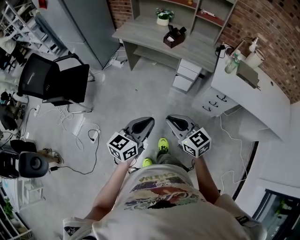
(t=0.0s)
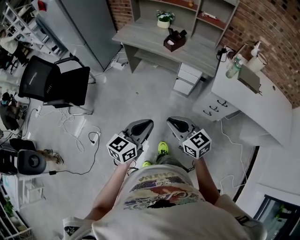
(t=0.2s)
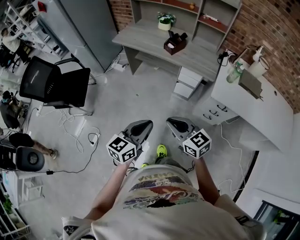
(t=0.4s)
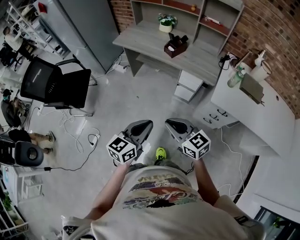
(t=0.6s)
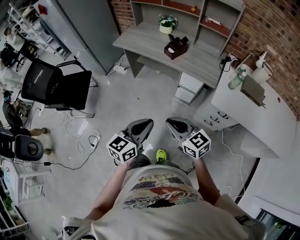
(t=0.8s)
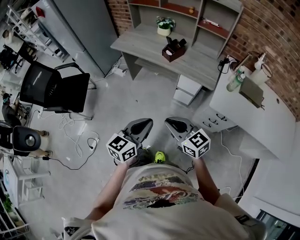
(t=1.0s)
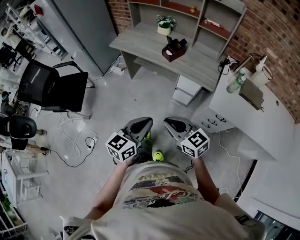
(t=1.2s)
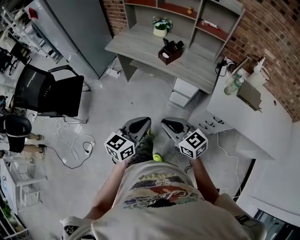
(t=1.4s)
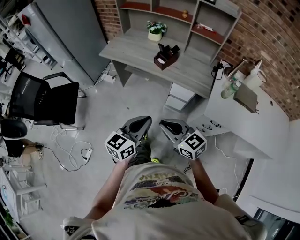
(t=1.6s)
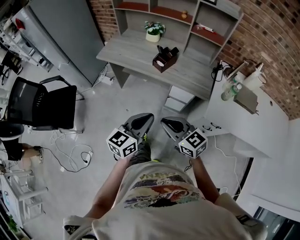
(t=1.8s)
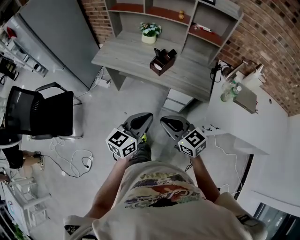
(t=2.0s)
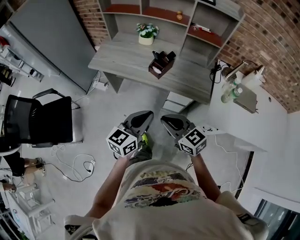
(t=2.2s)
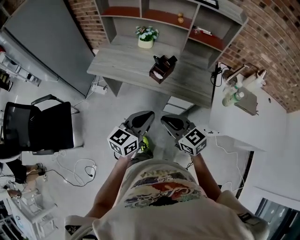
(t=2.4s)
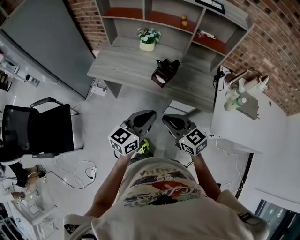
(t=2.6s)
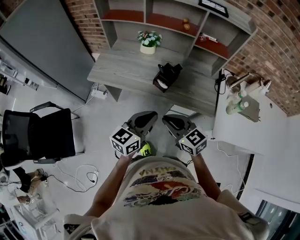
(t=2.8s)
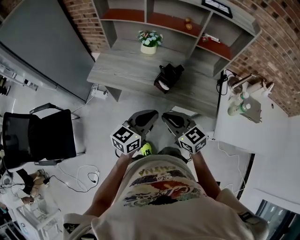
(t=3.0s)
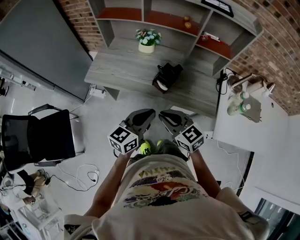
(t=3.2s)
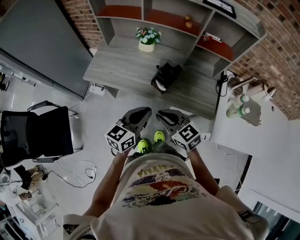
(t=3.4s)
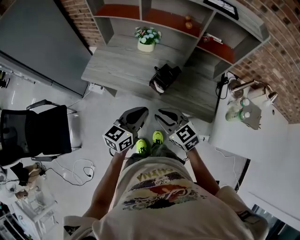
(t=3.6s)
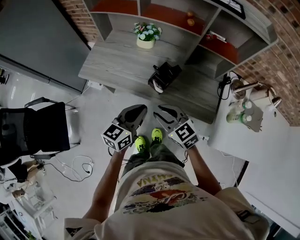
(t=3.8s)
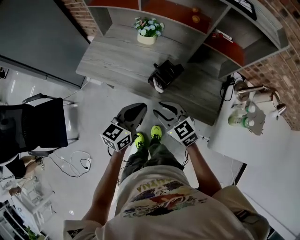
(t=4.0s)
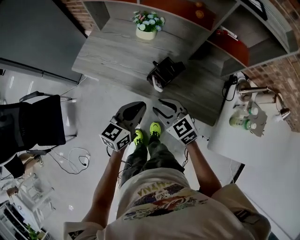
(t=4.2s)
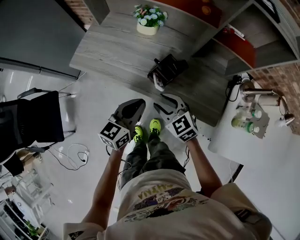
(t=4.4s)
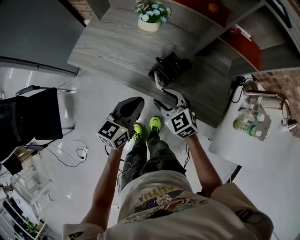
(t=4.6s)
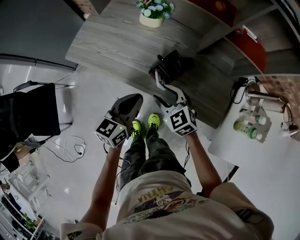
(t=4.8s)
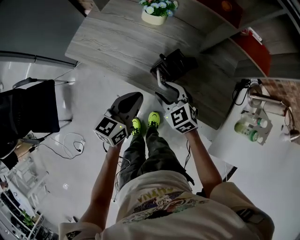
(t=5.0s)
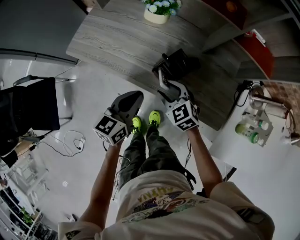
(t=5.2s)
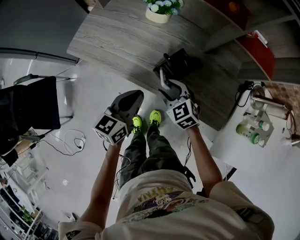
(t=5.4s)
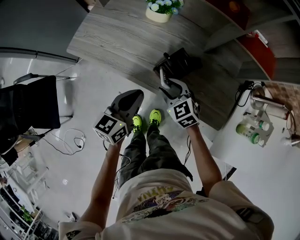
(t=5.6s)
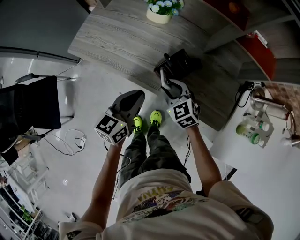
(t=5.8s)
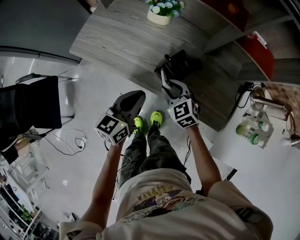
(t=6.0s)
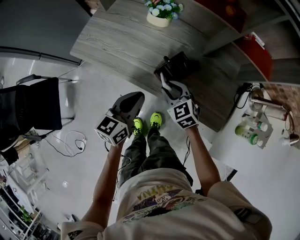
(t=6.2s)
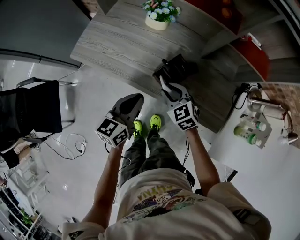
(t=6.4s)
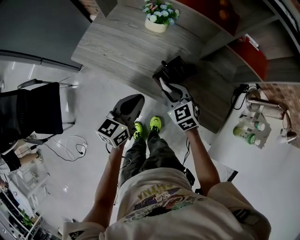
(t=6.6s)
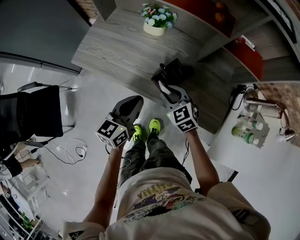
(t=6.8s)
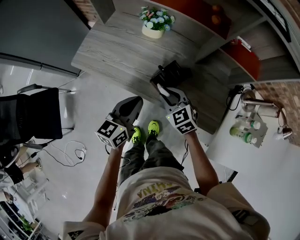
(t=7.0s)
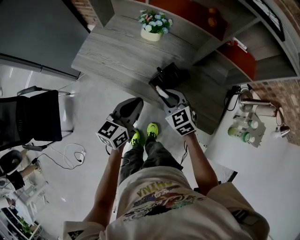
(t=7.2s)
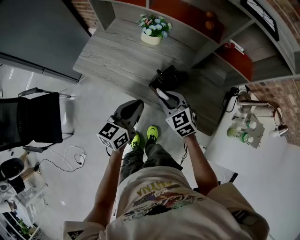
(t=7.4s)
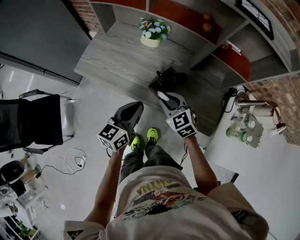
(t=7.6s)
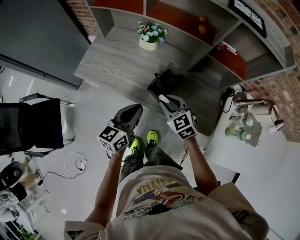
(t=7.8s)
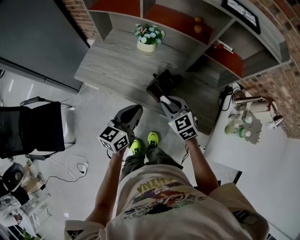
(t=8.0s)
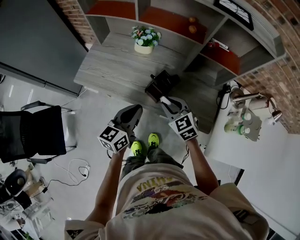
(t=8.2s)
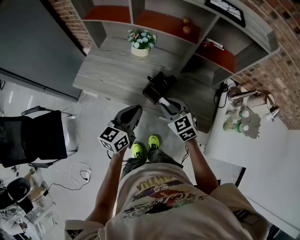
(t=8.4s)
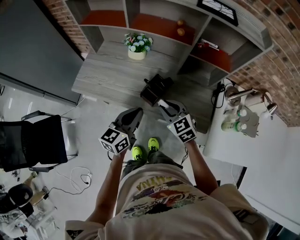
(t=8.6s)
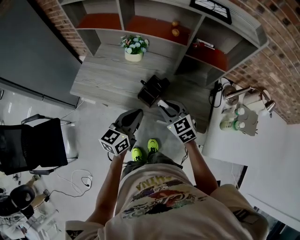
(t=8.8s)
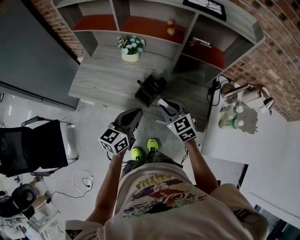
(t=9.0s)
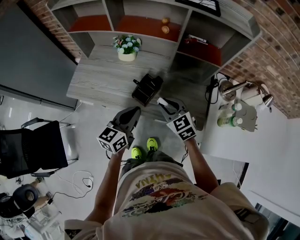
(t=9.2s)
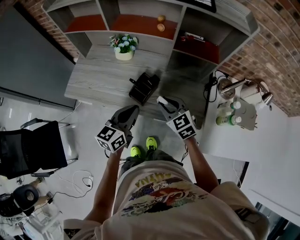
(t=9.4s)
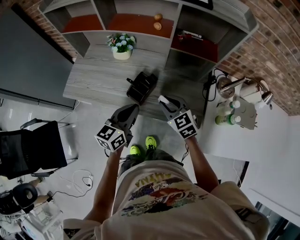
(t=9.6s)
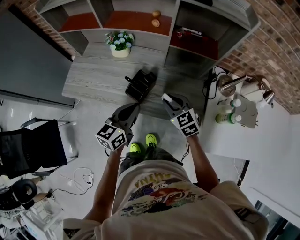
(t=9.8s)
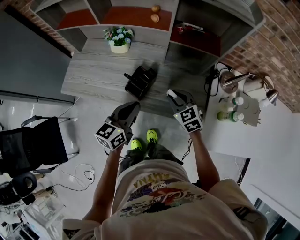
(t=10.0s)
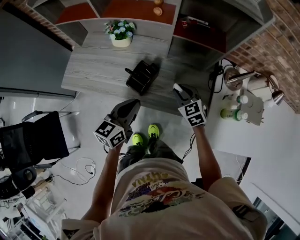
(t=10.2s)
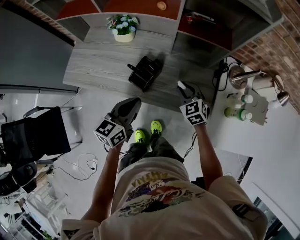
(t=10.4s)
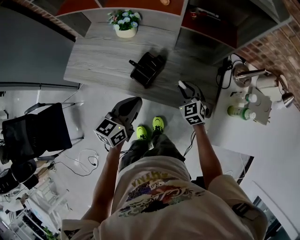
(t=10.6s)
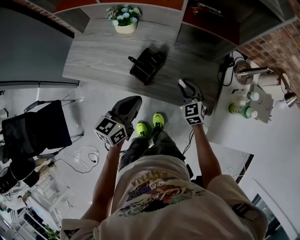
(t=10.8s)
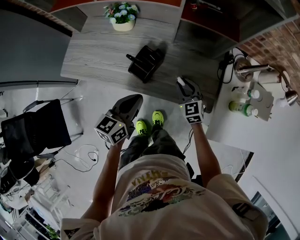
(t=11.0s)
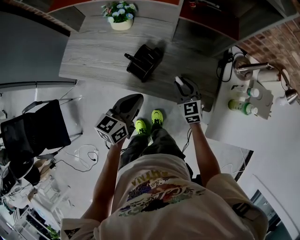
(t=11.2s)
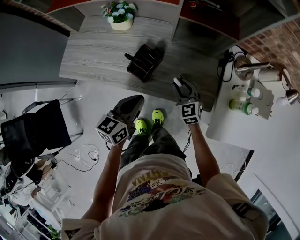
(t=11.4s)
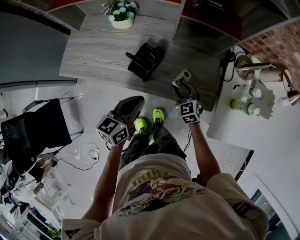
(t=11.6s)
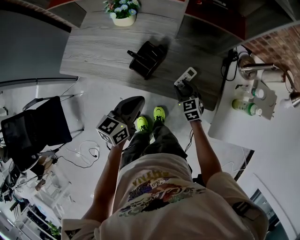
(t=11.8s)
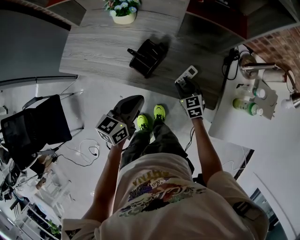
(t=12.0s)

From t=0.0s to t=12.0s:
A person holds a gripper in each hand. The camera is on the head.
From t=0.0s to t=1.6s: The two grippers go about 20 cm forward.
From t=1.6s to t=3.0s: Both grippers move forward, roughly 25 cm.
From t=3.0s to t=4.4s: The two grippers go about 15 cm forward and downward. The right gripper opens.
From t=4.4s to t=6.0s: The right gripper goes about 10 cm downward and forward.
From t=6.0s to t=7.6s: The right gripper shifts about 10 cm upward, while the left gripper shifts some 5 cm upward.
From t=7.6s to t=9.0s: The left gripper moves to the right, some 5 cm, while the right gripper moves to the right and upward, approximately 10 cm.
From t=9.0s to t=10.4s: The right gripper shifts approximately 15 cm to the right, downward and forward. Meanwhile the left gripper ends up some 5 cm from where it was.
From t=10.4s to t=12.0s: The right gripper goes roughly 10 cm downward. Meanwhile the left gripper travels downward by approximately 5 cm.

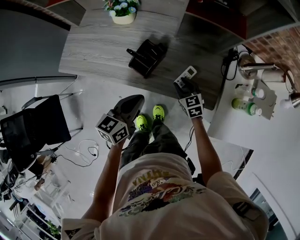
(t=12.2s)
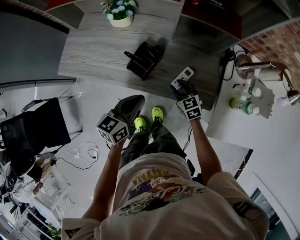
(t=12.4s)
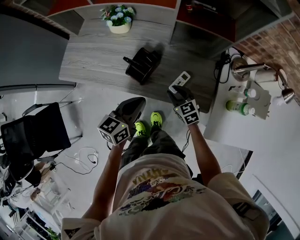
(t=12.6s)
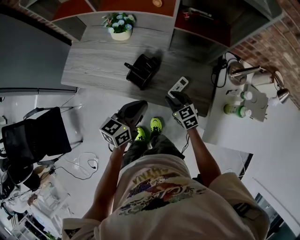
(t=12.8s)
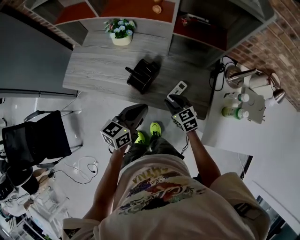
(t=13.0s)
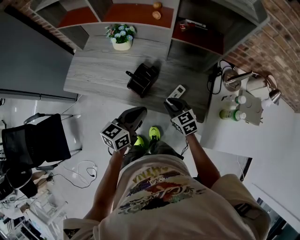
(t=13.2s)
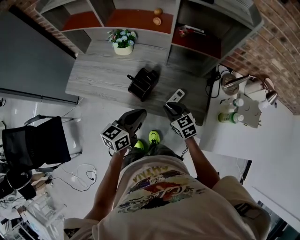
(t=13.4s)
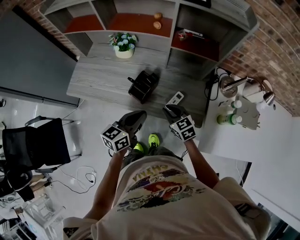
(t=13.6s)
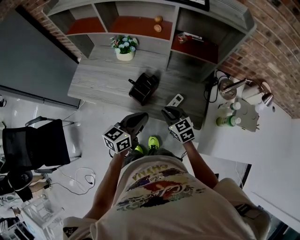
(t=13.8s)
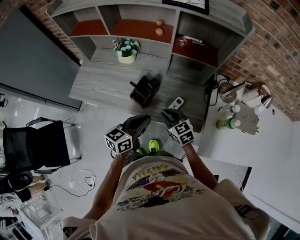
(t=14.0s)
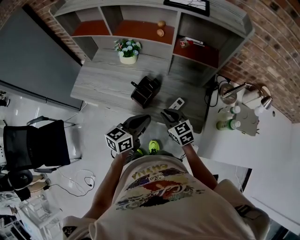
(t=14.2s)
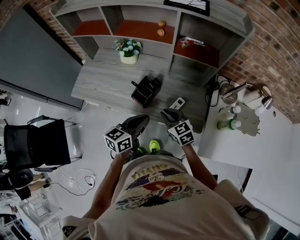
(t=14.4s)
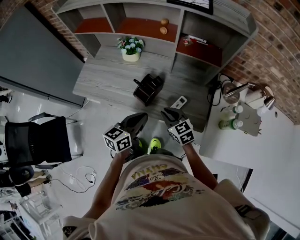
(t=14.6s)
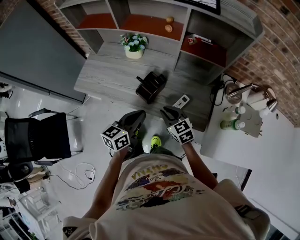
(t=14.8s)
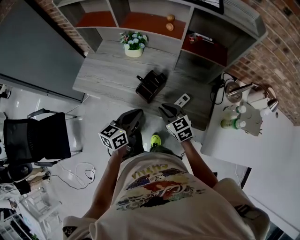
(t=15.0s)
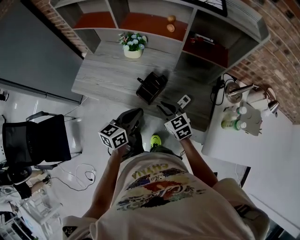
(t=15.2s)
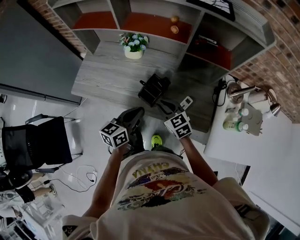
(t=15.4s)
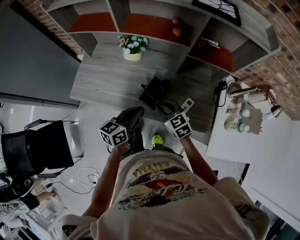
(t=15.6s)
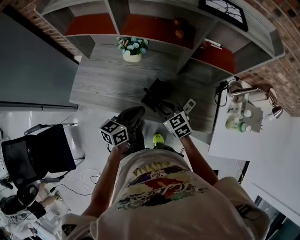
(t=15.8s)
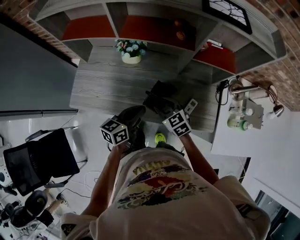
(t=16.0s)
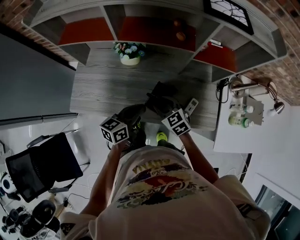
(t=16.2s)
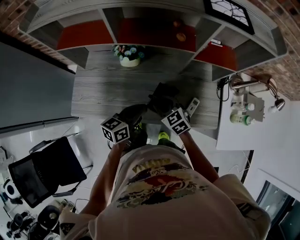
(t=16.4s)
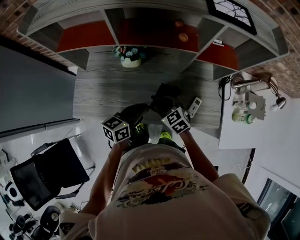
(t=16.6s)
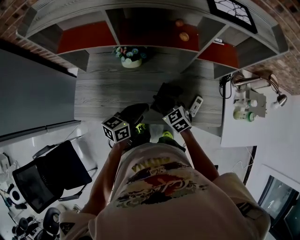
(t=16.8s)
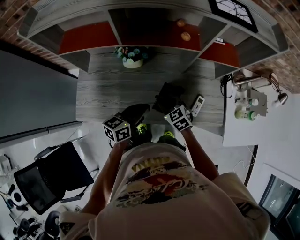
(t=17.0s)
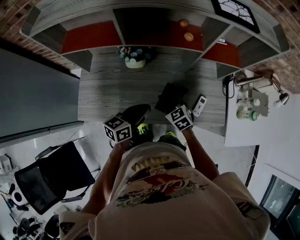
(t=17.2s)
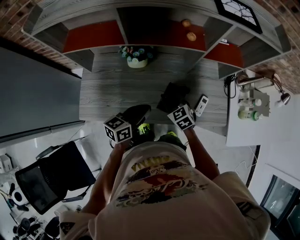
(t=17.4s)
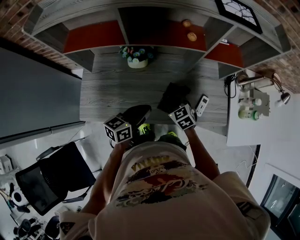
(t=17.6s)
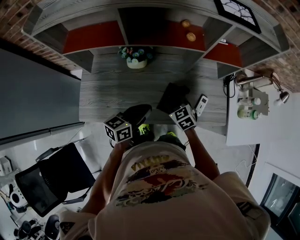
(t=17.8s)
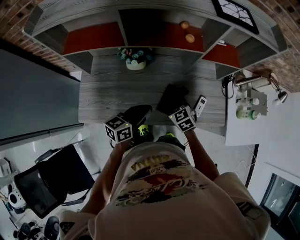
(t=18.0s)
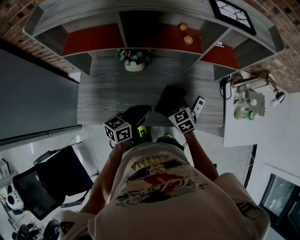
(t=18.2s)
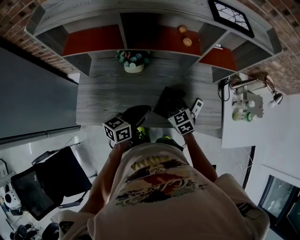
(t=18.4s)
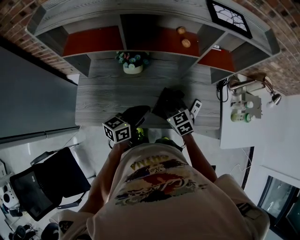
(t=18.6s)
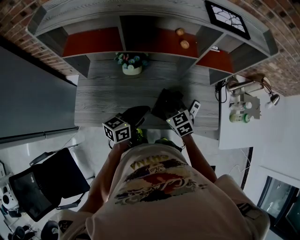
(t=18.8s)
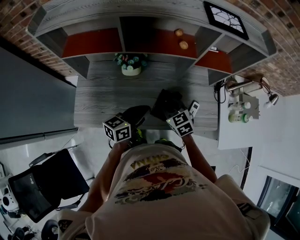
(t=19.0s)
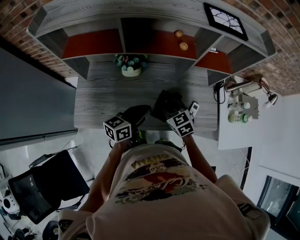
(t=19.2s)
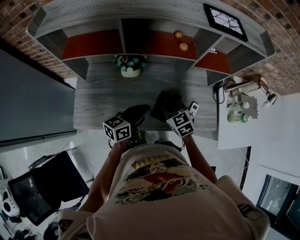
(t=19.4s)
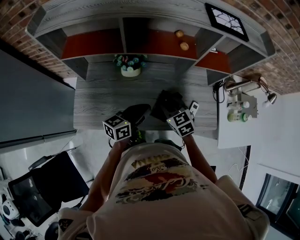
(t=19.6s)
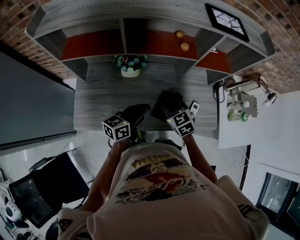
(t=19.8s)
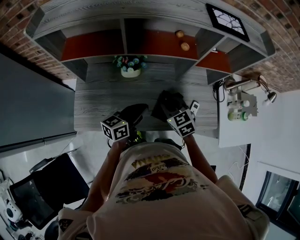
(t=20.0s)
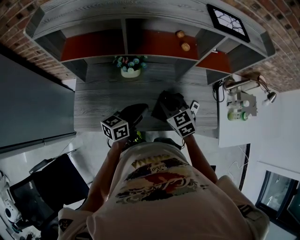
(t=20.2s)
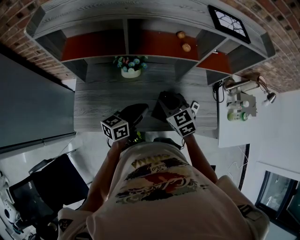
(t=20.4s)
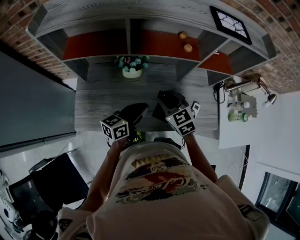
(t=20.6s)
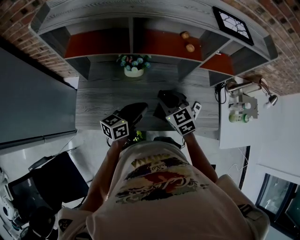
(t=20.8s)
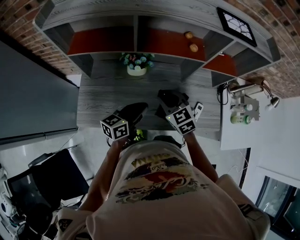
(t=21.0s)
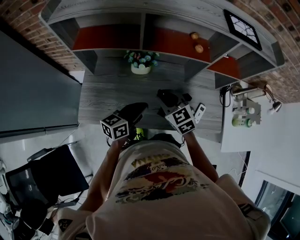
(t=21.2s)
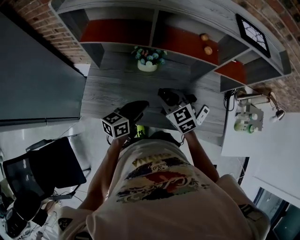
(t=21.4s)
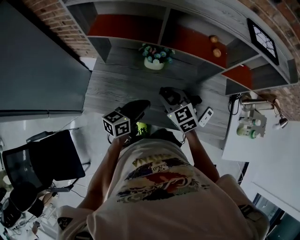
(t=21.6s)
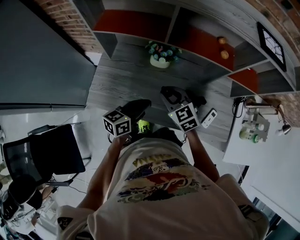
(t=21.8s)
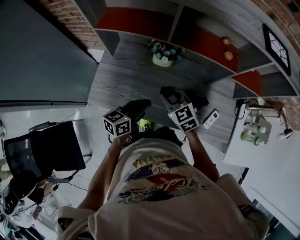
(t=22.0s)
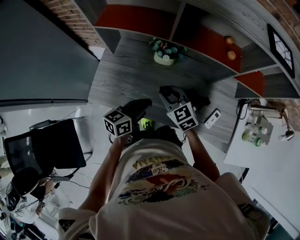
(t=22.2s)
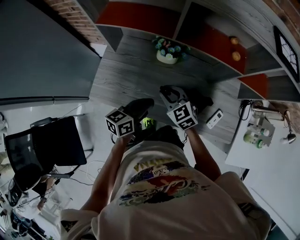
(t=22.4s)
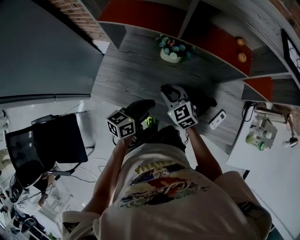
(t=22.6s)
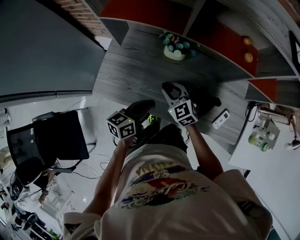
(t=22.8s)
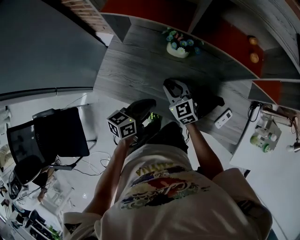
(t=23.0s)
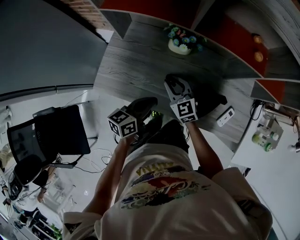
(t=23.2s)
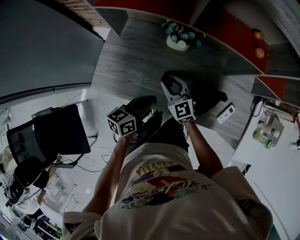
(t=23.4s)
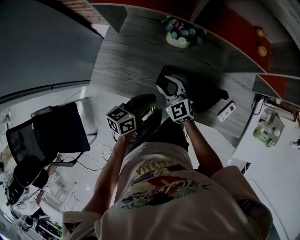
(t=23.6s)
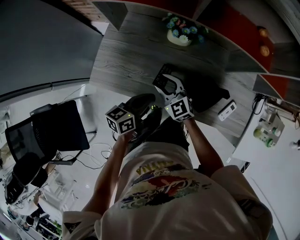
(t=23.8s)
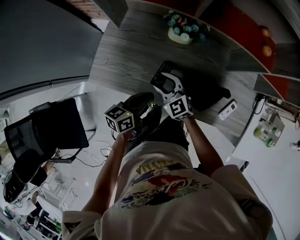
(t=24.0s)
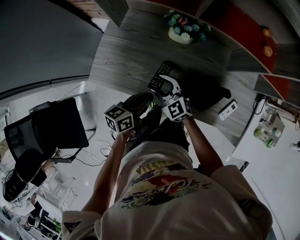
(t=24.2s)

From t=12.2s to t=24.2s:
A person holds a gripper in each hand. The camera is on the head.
From t=12.2s to t=13.8s: The right gripper is displaced upward by approximately 10 cm. The left gripper shifts approximately 5 cm upward.
From t=13.8s to t=15.2s: The grippers both shift to the left by some 5 cm.
From t=15.2s to t=16.6s: Both grippers travel together forward and to the left, roughly 15 cm.
From t=16.6s to t=18.2s: The grippers move only a little.
From t=18.2s to t=19.8s: The right gripper is displaced upward by approximately 5 cm.
From t=19.8s to t=21.2s: The right gripper travels to the left by roughly 5 cm. The left gripper moves roughly 5 cm.
From t=21.2s to t=22.6s: The left gripper is displaced to the left and downward by roughly 10 cm. Meanwhile the right gripper shifts roughly 10 cm downward and to the left.
From t=22.6s to t=24.2s: The left gripper heads downward, covering some 5 cm, while the right gripper heads downward and to the left, covering about 10 cm, and opens.
